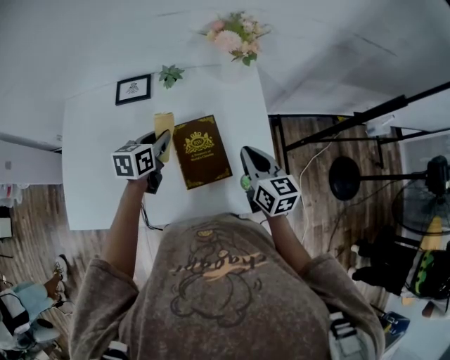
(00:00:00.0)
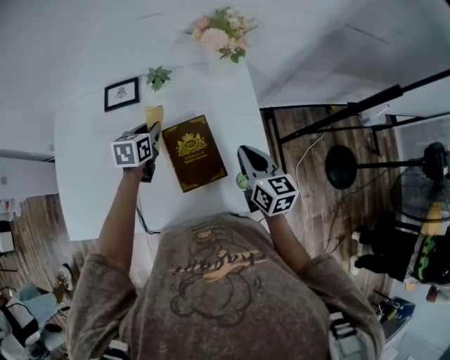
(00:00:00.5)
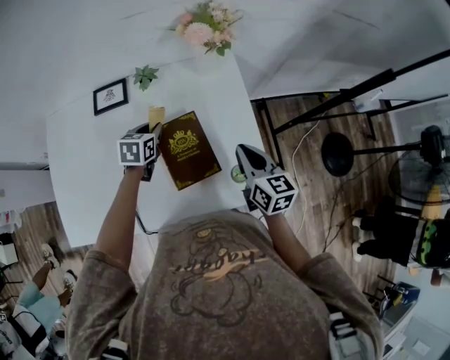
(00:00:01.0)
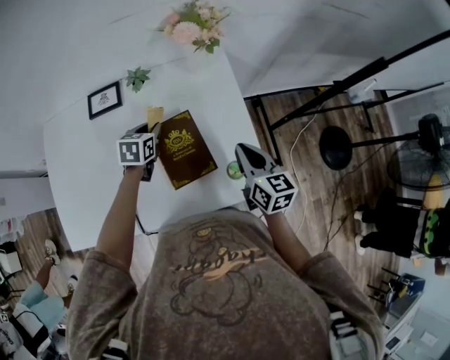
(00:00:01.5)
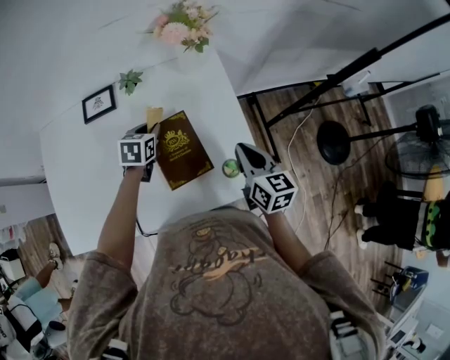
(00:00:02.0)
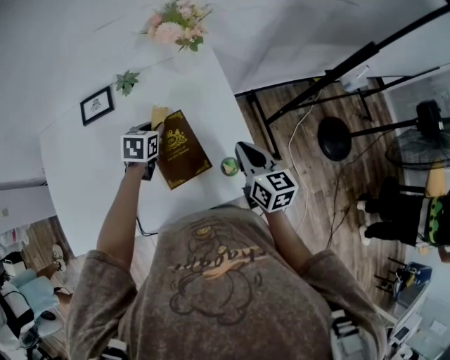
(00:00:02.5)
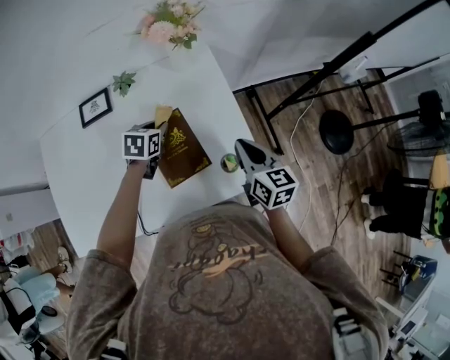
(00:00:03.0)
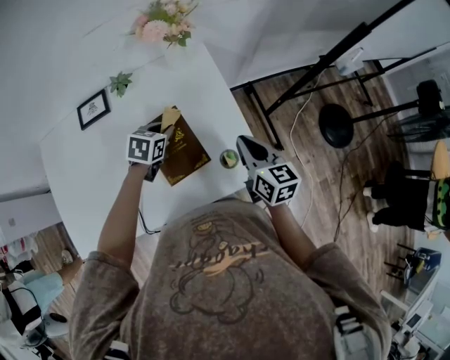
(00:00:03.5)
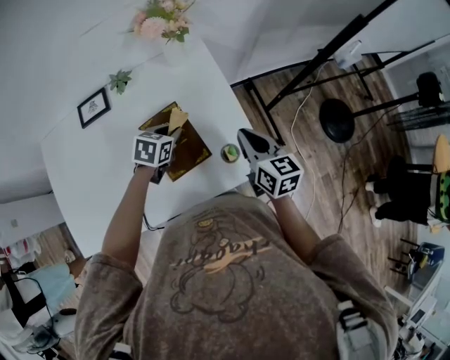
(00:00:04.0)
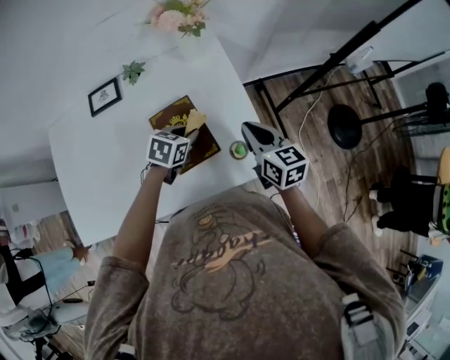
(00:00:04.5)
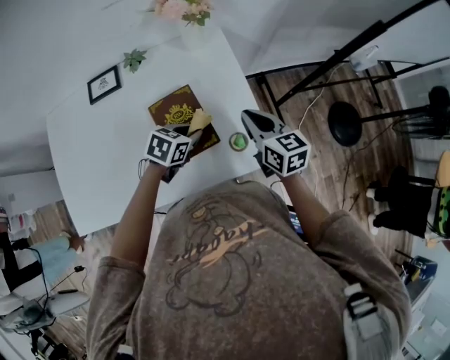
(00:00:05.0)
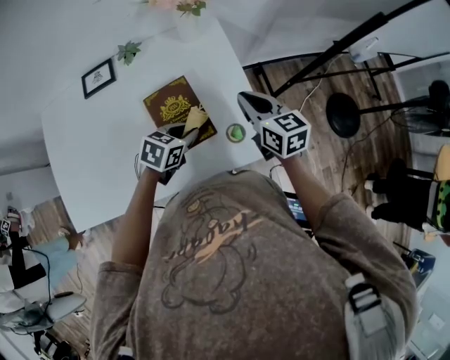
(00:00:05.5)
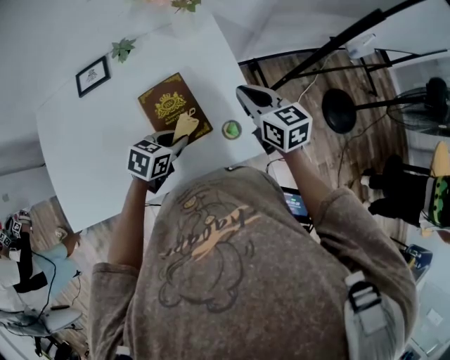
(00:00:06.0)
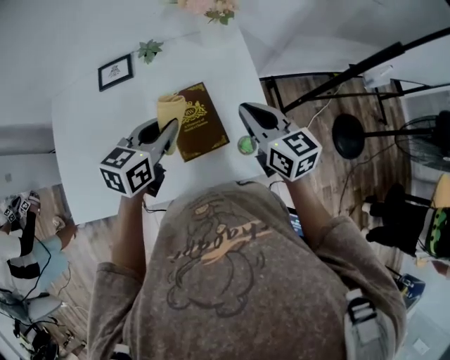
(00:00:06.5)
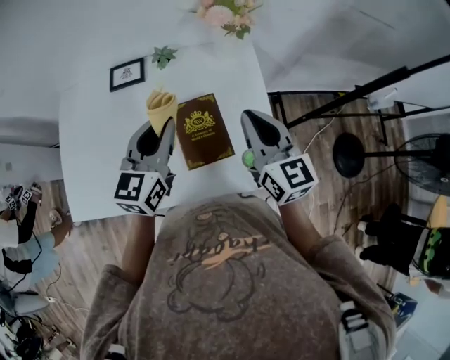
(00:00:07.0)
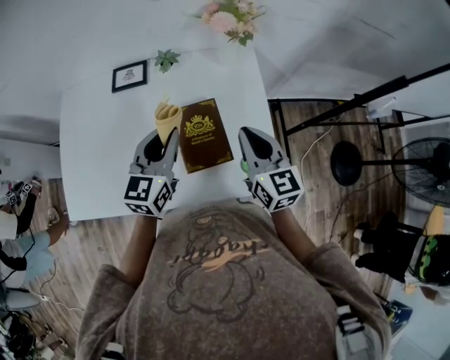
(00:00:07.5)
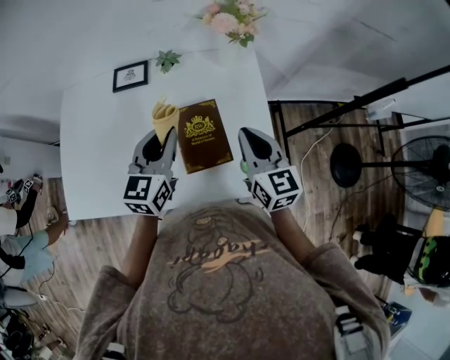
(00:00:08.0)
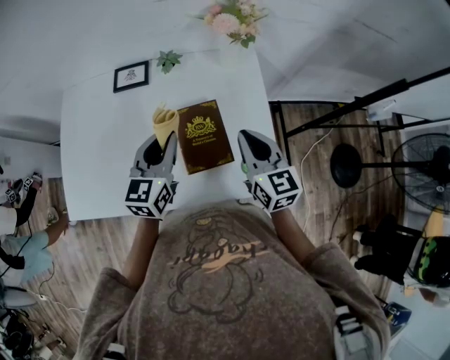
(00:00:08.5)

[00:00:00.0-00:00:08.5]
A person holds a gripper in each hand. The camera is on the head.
00:00:00.0 to 00:00:02.0: The left gripper moves to the right and downward, some 10 cm, and rotates roughly 20 degrees; the right gripper goes about 5 cm to the right.
00:00:02.0 to 00:00:04.0: The left gripper goes roughly 10 cm to the right.
00:00:04.0 to 00:00:06.5: The right gripper shifts some 10 cm to the left and upward, while the left gripper travels upward and backward by roughly 15 cm, and rotates approximately 30 degrees.
00:00:06.5 to 00:00:08.5: The left gripper rotates about 30 degrees.

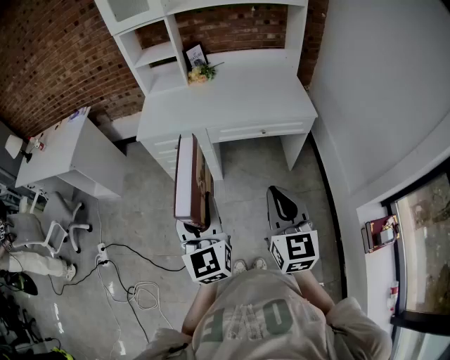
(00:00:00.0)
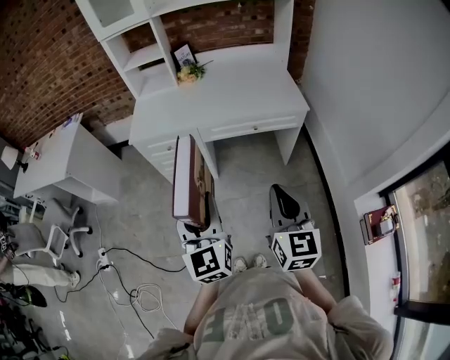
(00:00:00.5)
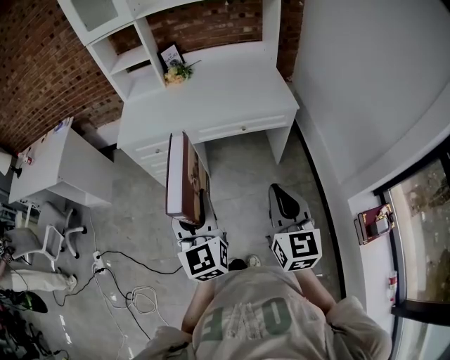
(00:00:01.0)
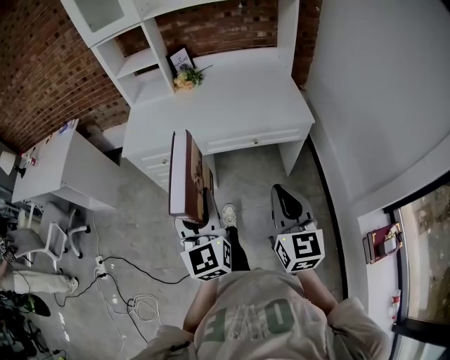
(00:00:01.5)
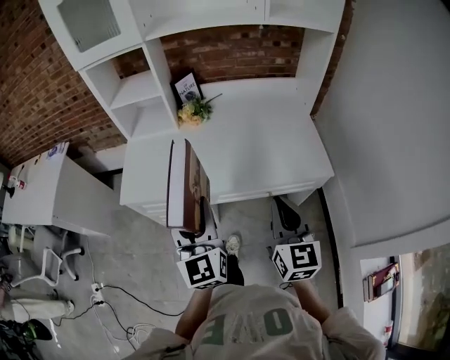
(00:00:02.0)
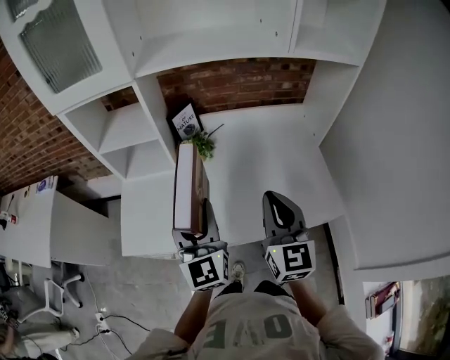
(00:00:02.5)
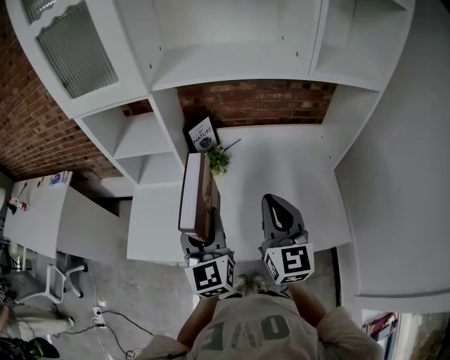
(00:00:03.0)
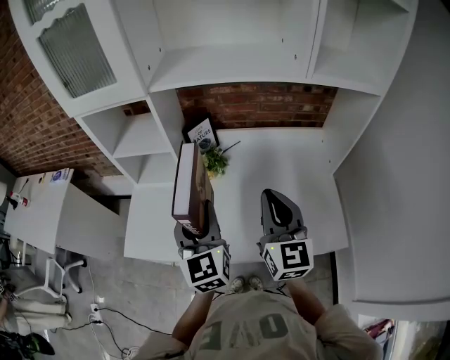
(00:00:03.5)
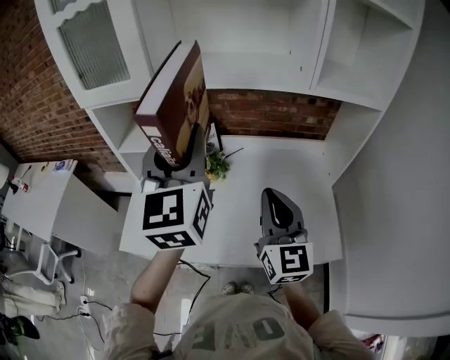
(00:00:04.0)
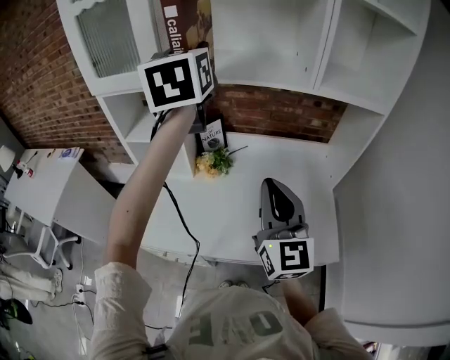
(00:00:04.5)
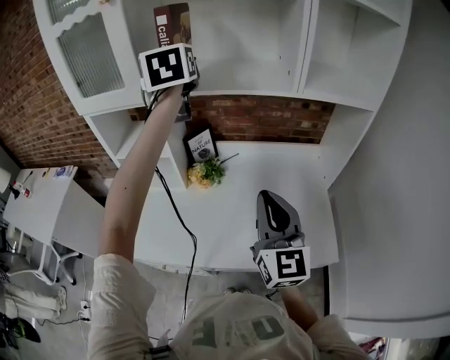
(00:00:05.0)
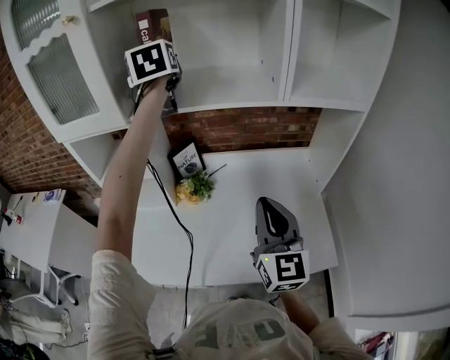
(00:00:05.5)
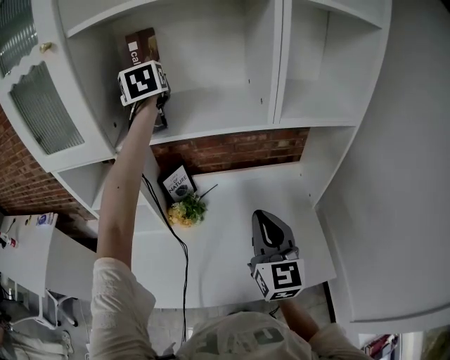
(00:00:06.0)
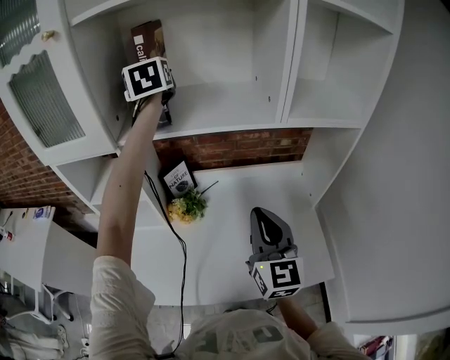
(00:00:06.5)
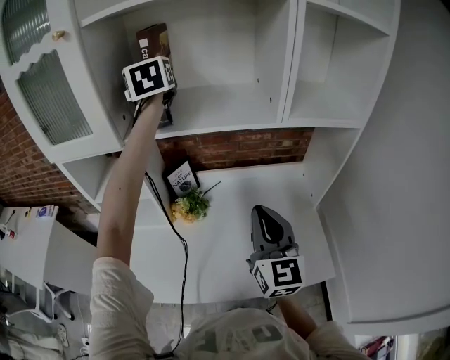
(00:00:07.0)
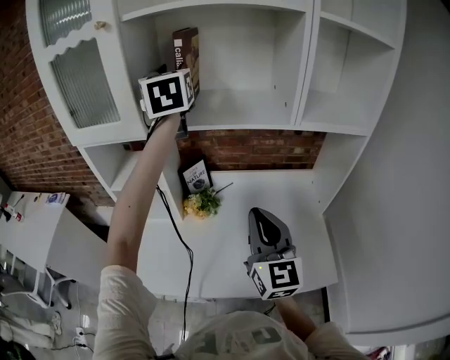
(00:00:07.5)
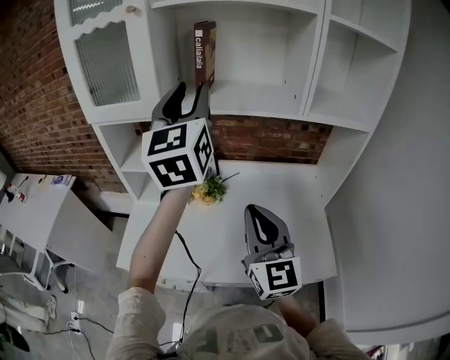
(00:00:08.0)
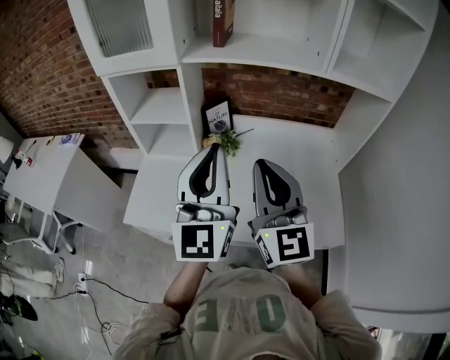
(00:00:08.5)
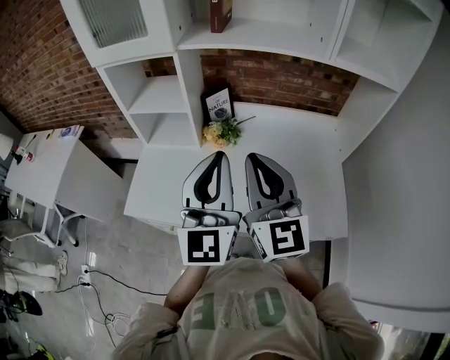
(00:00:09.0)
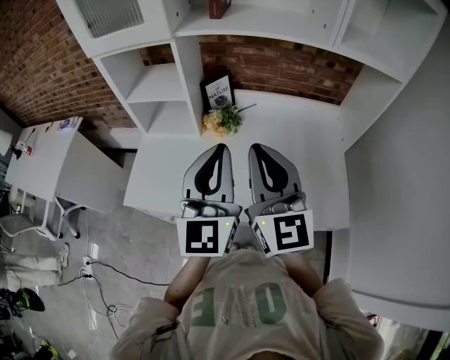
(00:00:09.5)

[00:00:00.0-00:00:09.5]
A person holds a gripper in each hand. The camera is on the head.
00:00:00.0 to 00:00:02.0: Both grippers travel together forward, roughly 30 cm.
00:00:02.0 to 00:00:04.0: Both grippers move forward and upward, some 35 cm.
00:00:04.0 to 00:00:05.5: The left gripper moves forward, roughly 30 cm, while the right gripper ends up about 5 cm from where it was.
00:00:05.5 to 00:00:07.5: The left gripper changes place by about 5 cm.
00:00:07.5 to 00:00:09.5: The left gripper travels backward and downward by roughly 40 cm, and closes. The right gripper heads to the left and backward, covering approximately 10 cm.

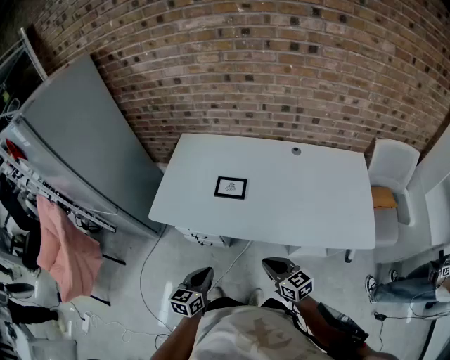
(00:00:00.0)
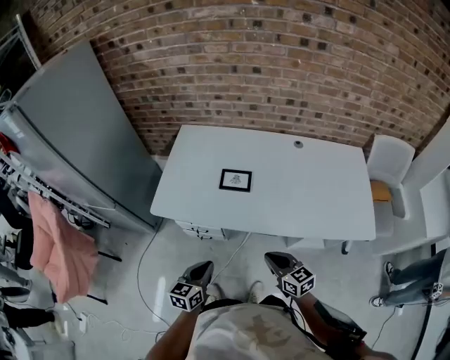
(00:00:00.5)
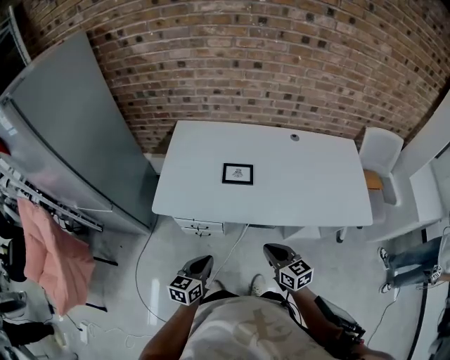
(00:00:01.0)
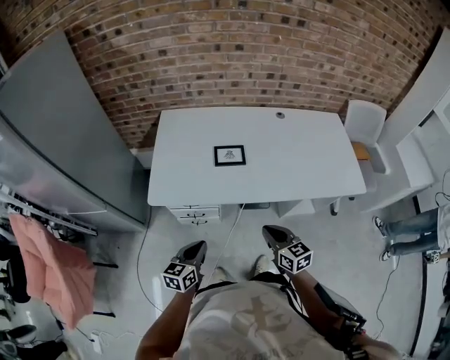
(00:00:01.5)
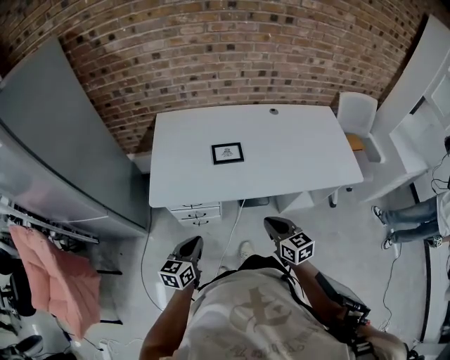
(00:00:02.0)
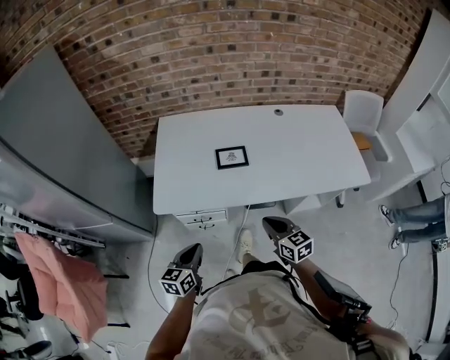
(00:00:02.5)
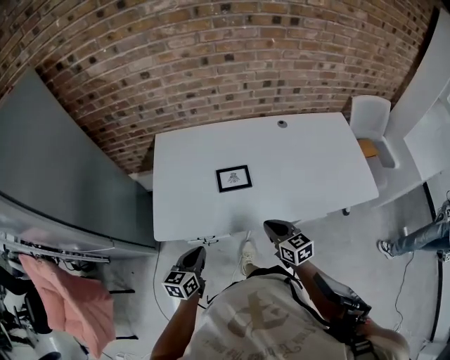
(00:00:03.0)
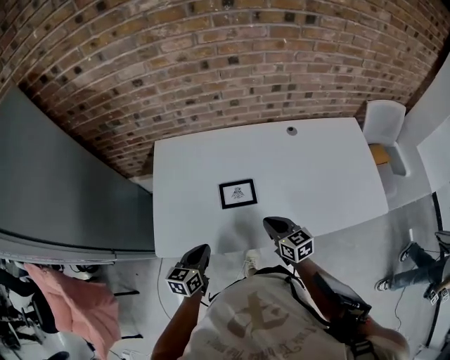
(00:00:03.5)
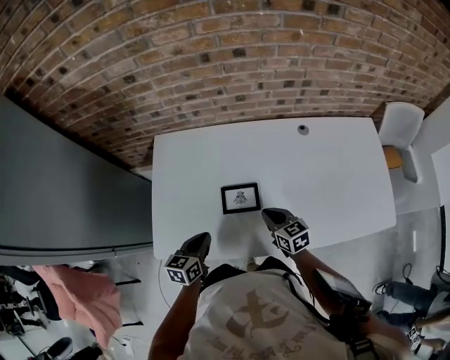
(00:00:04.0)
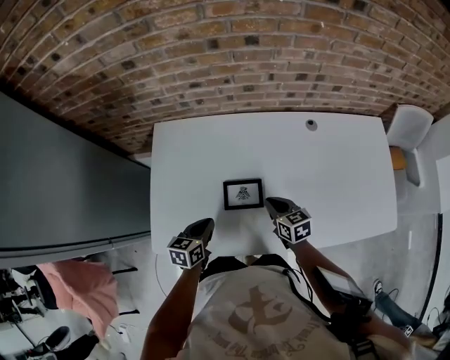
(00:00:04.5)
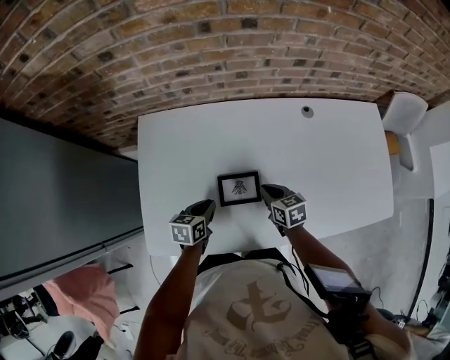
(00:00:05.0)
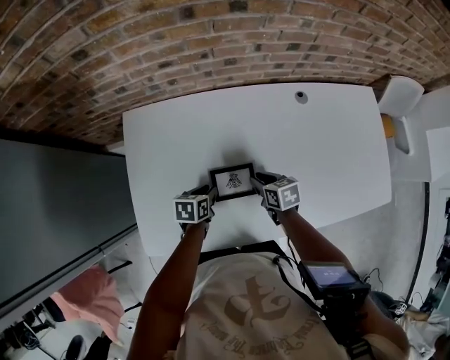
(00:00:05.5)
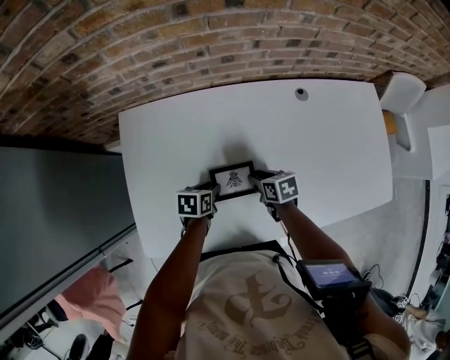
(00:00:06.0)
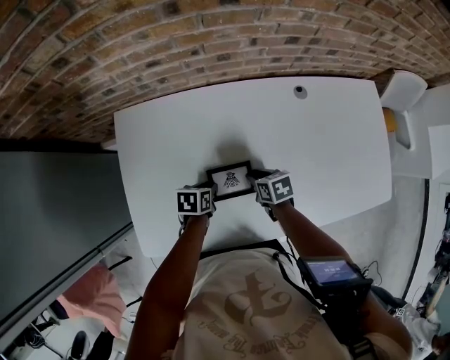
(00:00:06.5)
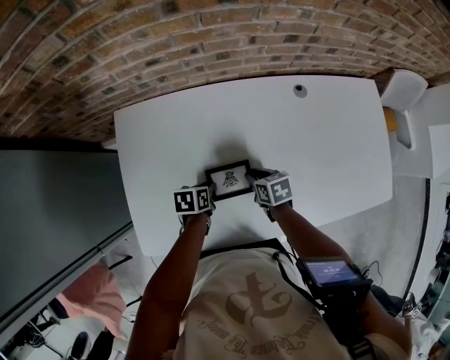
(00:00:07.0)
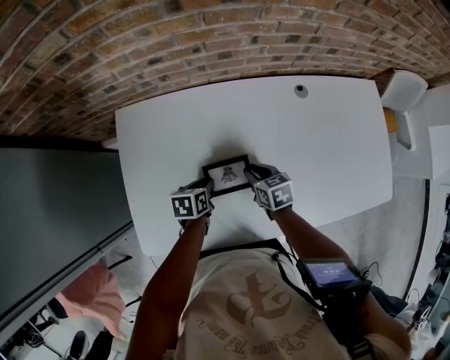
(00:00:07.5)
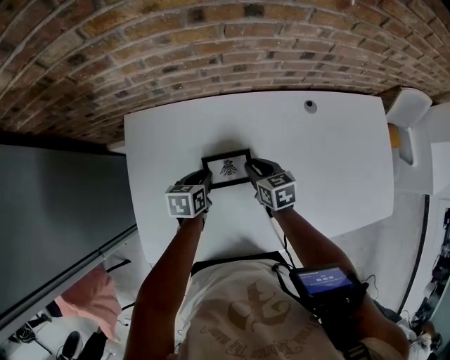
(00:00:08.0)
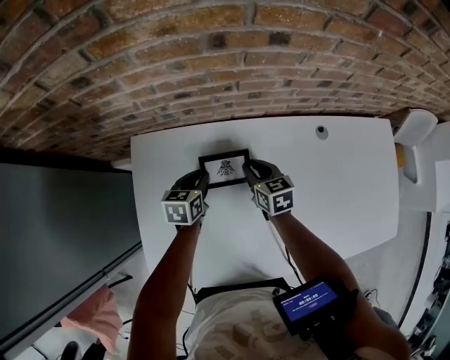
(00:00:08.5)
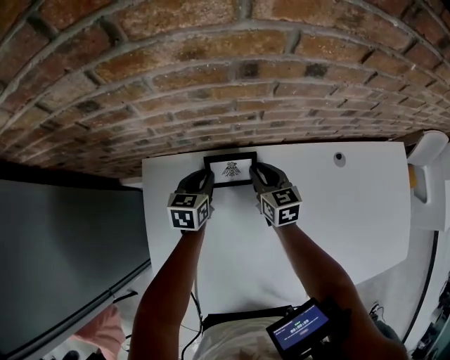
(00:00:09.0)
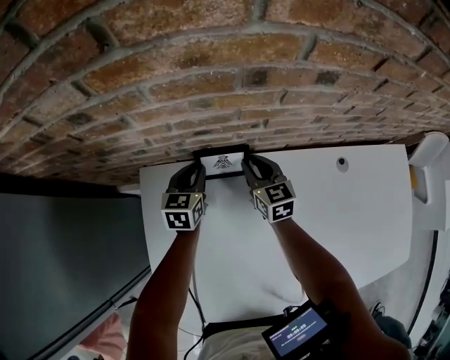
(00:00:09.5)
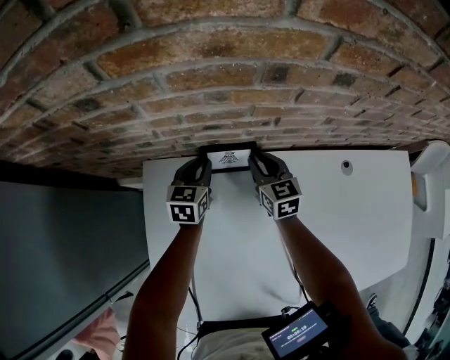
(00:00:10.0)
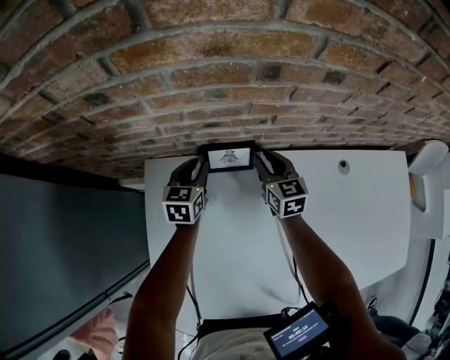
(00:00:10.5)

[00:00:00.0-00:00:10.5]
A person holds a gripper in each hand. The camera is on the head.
00:00:00.0 to 00:00:02.0: Both grippers travel together to the left, roughly 15 cm. The right gripper swivels roughly 20 degrees.
00:00:02.0 to 00:00:04.0: Both grippers move forward, approximately 30 cm.
00:00:04.0 to 00:00:06.5: The left gripper is displaced forward and downward by about 20 cm, swivels about 40 degrees, and opens. Meanwhile the right gripper goes roughly 15 cm downward and forward, changes its angle by approximately 30 degrees, and opens up.
00:00:06.5 to 00:00:08.5: Both grippers travel together forward and to the left, approximately 20 cm. The left gripper turns by some 30 degrees. The right gripper rotates about 30 degrees.
00:00:08.5 to 00:00:10.5: The right gripper goes roughly 15 cm forward. The left gripper travels forward and to the left by about 15 cm.
